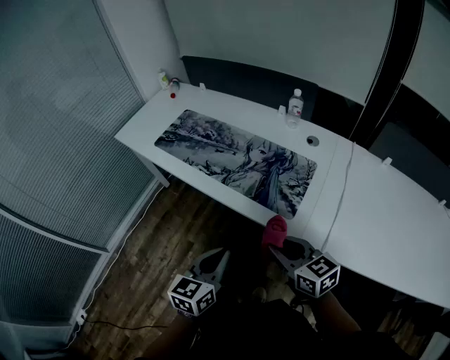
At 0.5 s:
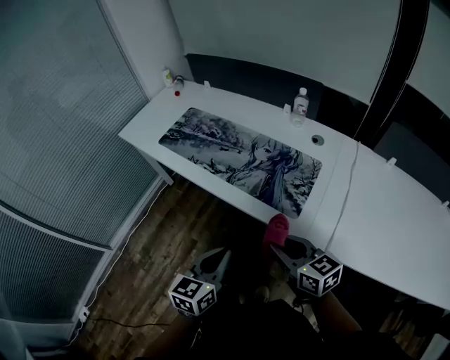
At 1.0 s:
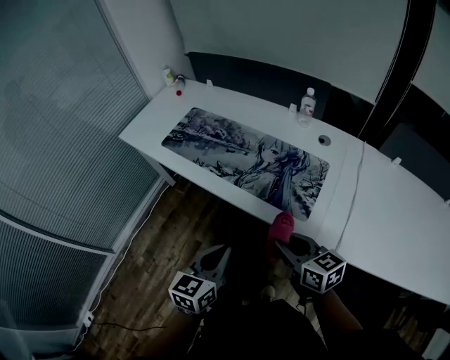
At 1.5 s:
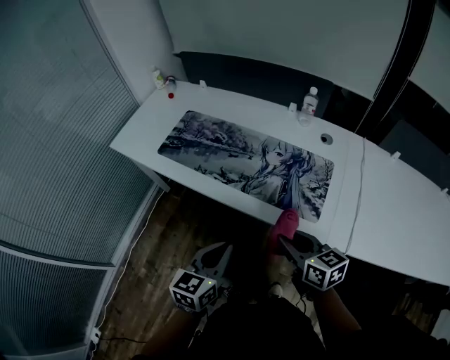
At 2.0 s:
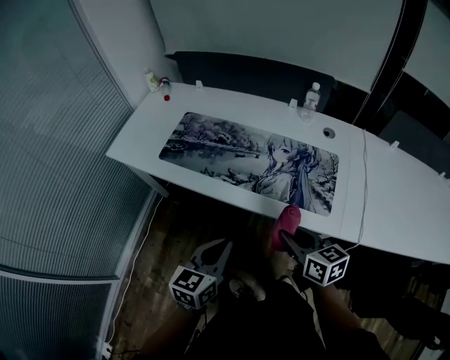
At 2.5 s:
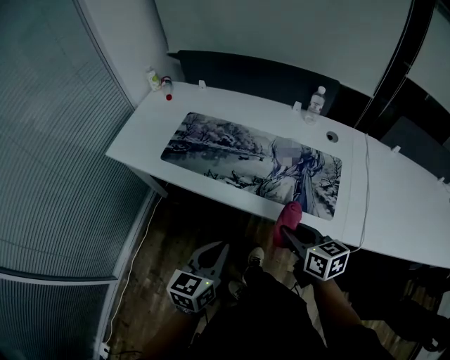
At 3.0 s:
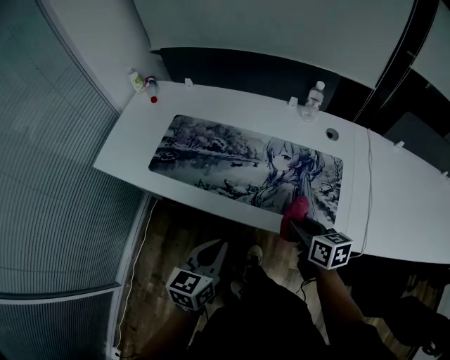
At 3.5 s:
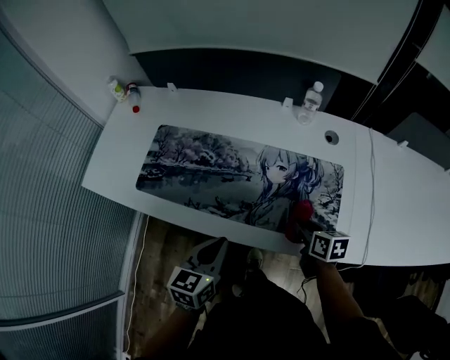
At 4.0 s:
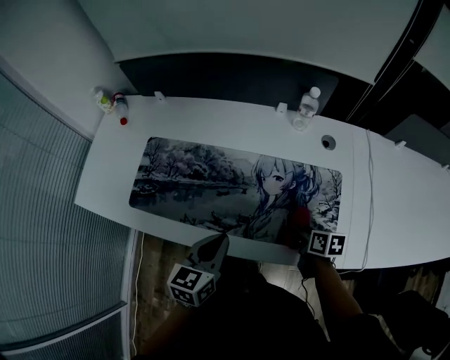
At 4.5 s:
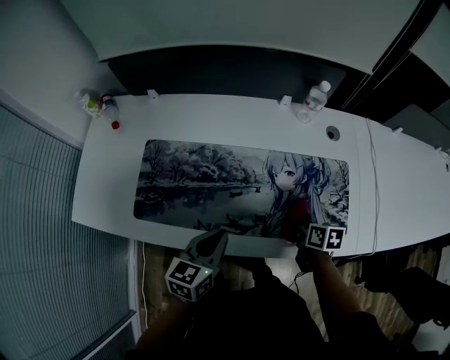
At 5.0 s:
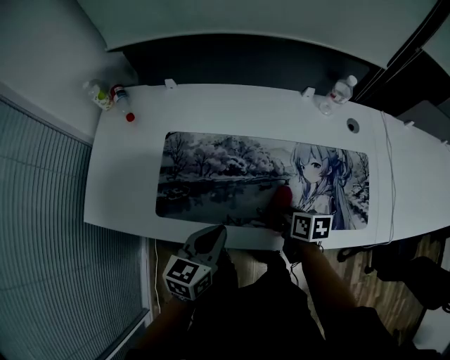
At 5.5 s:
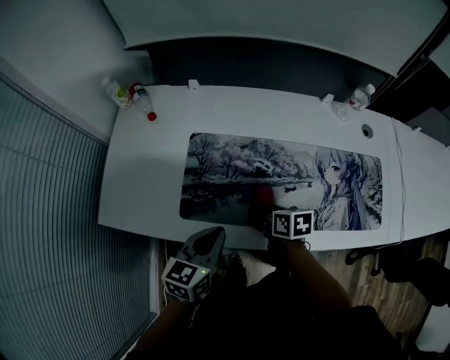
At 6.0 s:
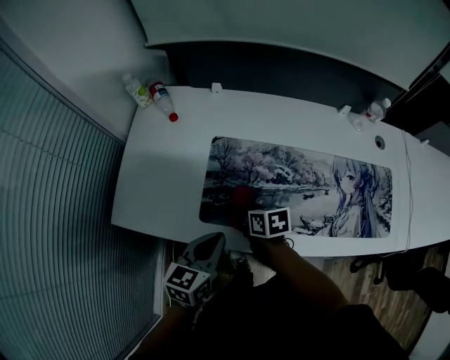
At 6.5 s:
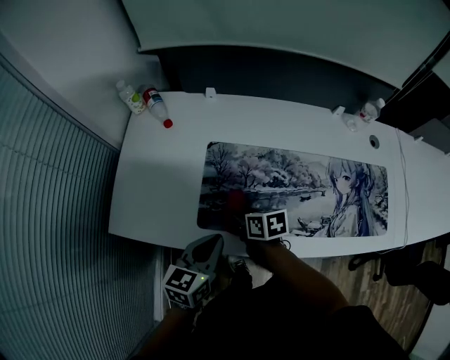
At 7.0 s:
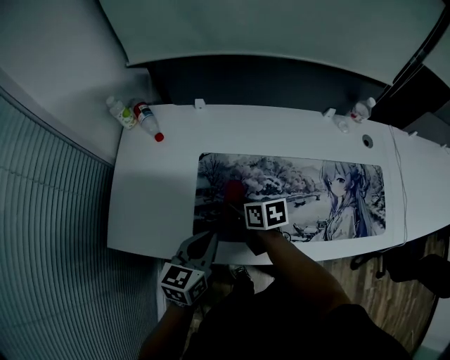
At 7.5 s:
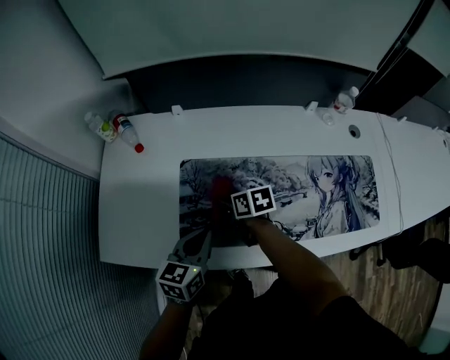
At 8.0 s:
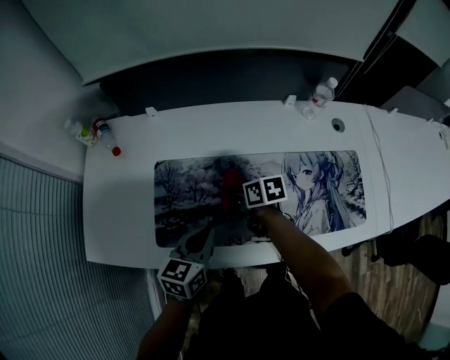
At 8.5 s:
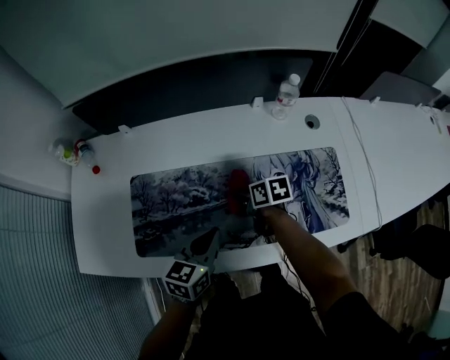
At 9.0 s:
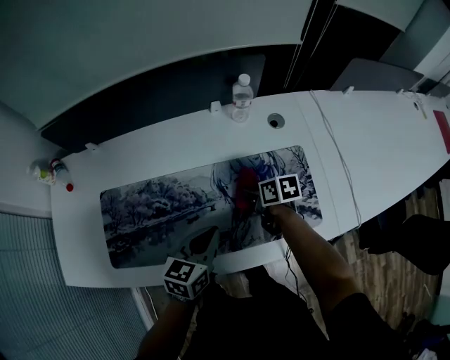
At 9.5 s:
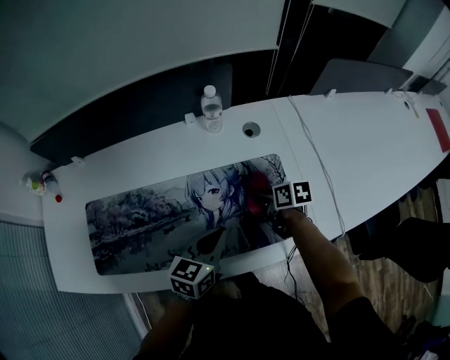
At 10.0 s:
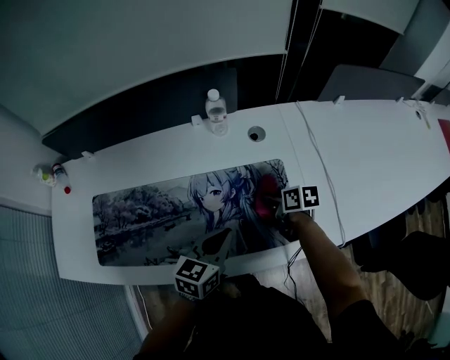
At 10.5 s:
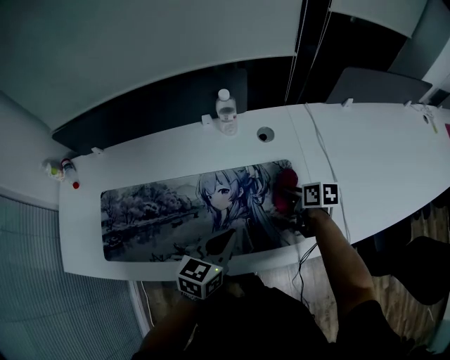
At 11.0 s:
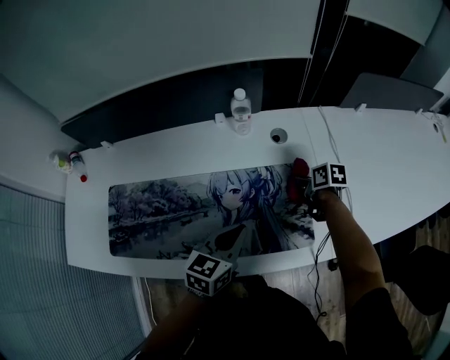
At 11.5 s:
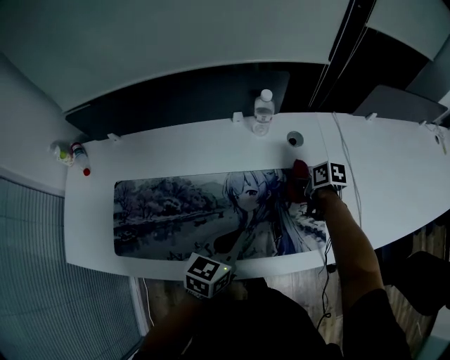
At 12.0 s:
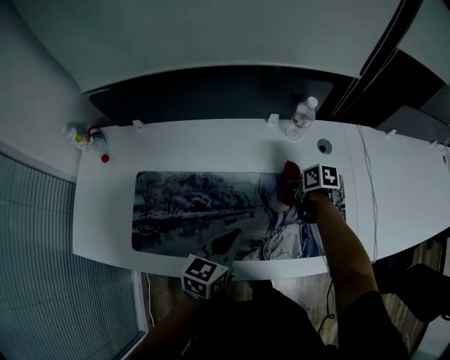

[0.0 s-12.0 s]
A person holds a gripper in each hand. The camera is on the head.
0.0 to 2.0 s: The grippers both shift to the left and forward by approximately 20 cm. The right gripper swivels approximately 20 degrees.
2.0 to 4.0 s: The right gripper heads forward, downward and to the right, covering approximately 30 cm, and turns by about 40 degrees; the left gripper heads forward, covering roughly 25 cm.
4.0 to 6.0 s: The right gripper goes about 50 cm to the left; the left gripper heads to the left, covering about 30 cm.
6.0 to 8.0 s: Both grippers move to the right and forward, about 15 cm.
8.0 to 10.0 s: The grippers both shift to the right by some 40 cm.
10.0 to 12.0 s: The right gripper is displaced to the left and forward by roughly 15 cm; the left gripper is displaced to the left by about 20 cm.

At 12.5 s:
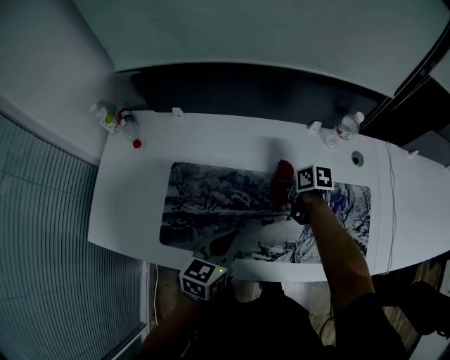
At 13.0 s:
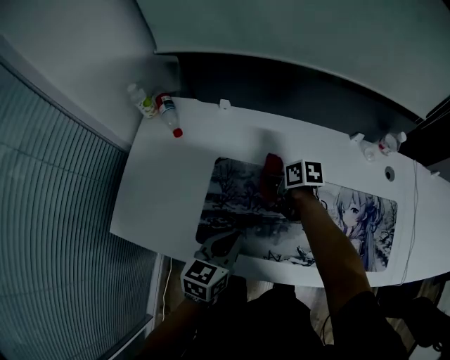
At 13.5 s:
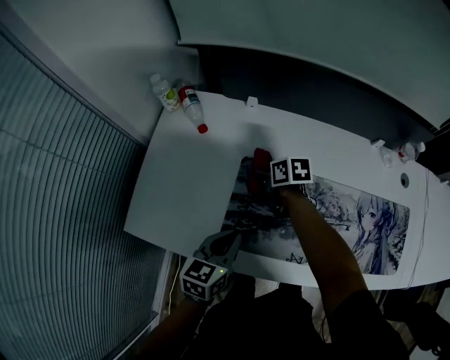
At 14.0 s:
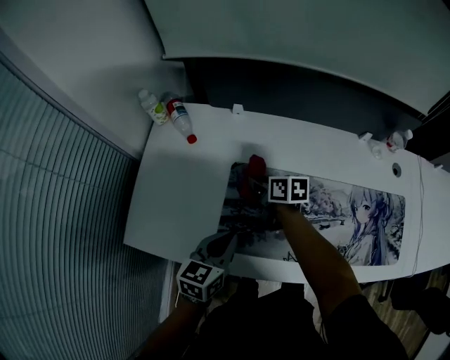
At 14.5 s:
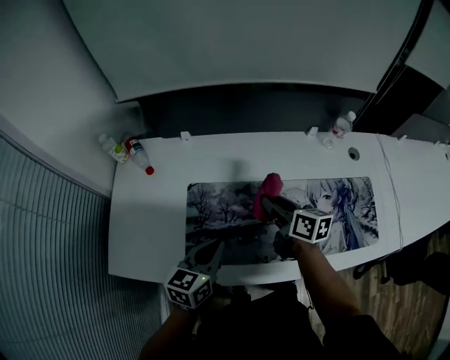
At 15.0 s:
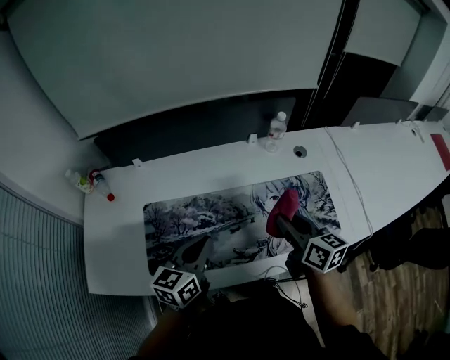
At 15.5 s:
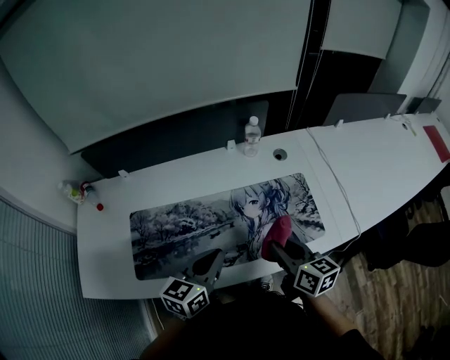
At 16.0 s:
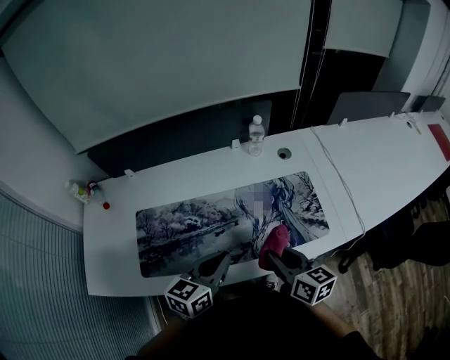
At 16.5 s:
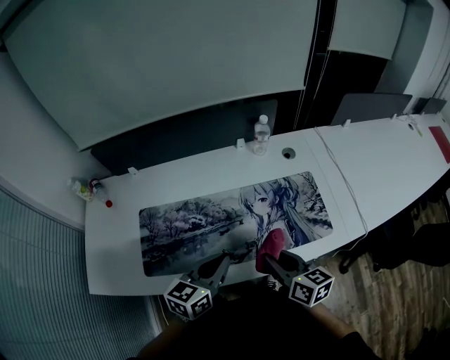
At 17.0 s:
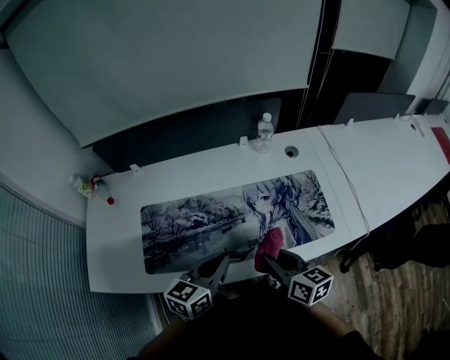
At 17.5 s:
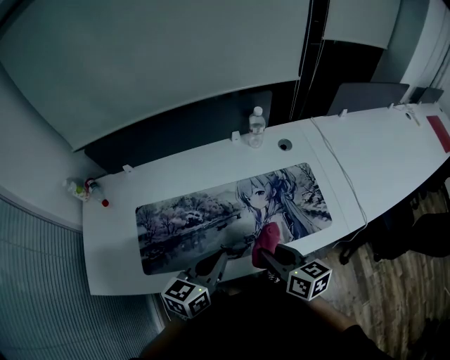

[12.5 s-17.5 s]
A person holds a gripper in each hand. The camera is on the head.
12.5 to 15.0 s: The right gripper goes some 20 cm upward, and tilts its fingers approximately 40 degrees upward, while the left gripper moves upward, approximately 10 cm.
15.0 to 17.5 s: The right gripper shifts approximately 10 cm backward, while the left gripper goes approximately 10 cm to the right and backward.

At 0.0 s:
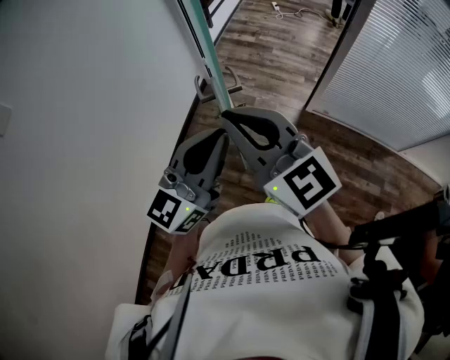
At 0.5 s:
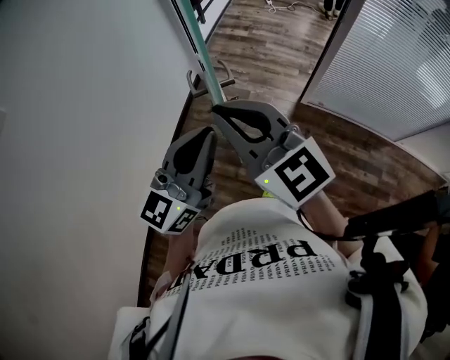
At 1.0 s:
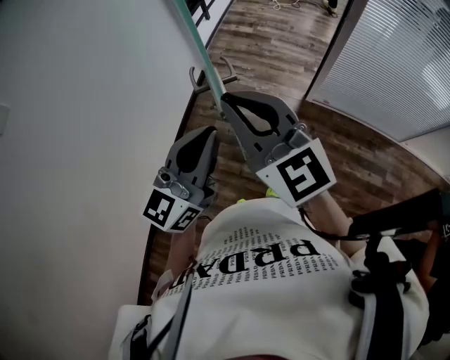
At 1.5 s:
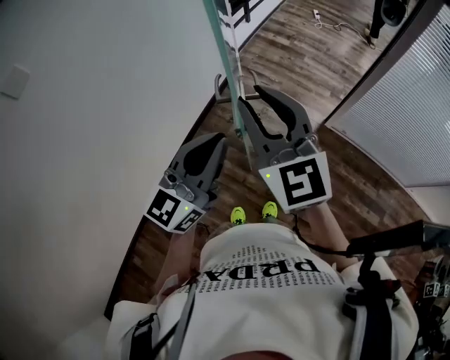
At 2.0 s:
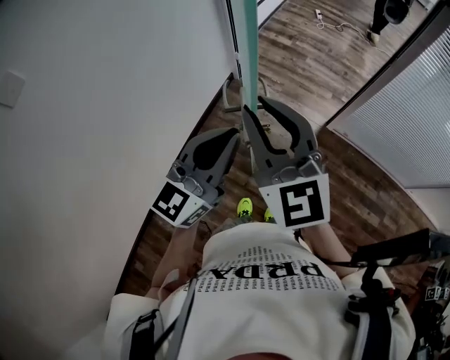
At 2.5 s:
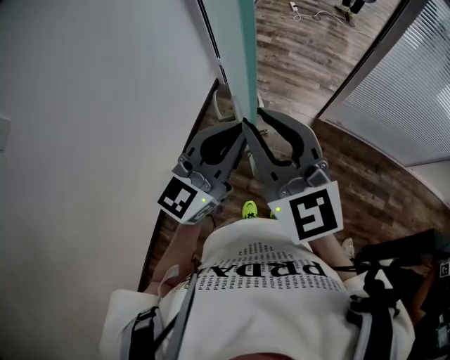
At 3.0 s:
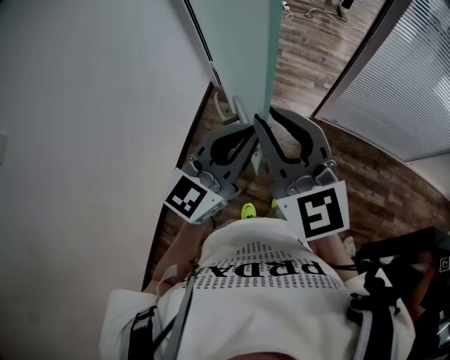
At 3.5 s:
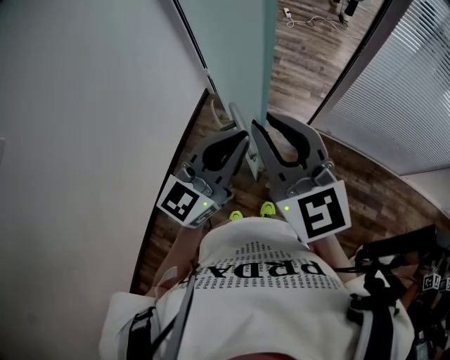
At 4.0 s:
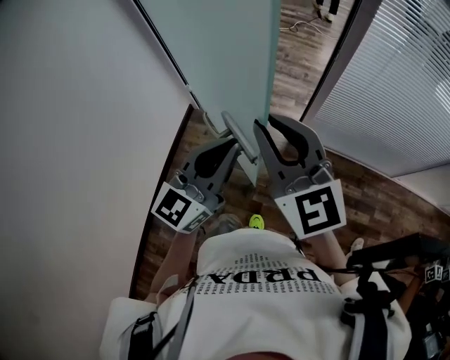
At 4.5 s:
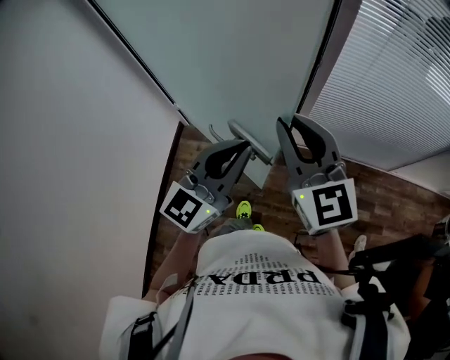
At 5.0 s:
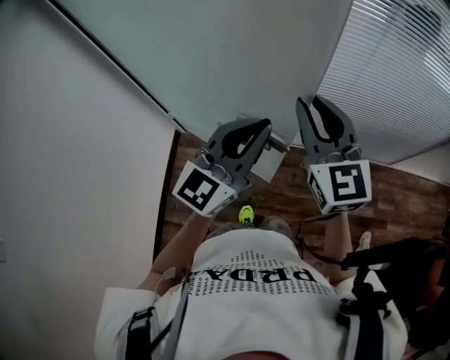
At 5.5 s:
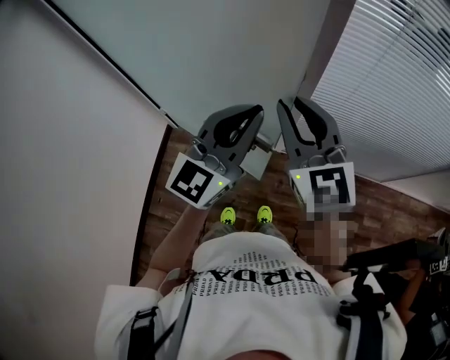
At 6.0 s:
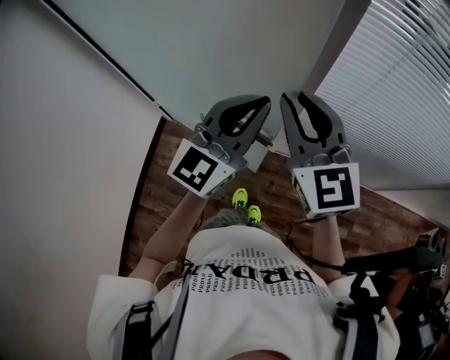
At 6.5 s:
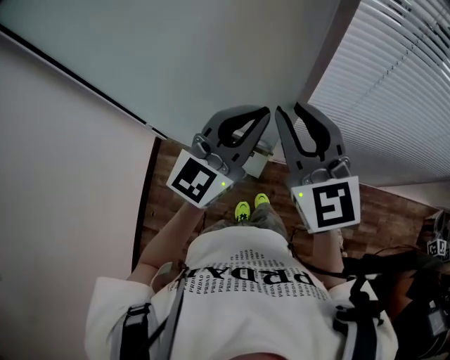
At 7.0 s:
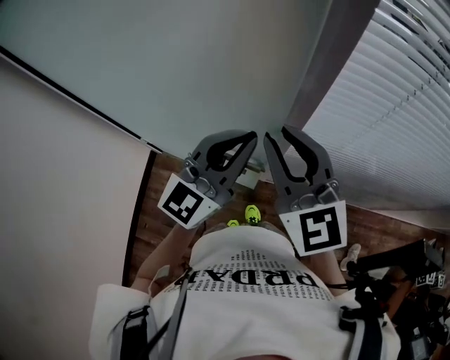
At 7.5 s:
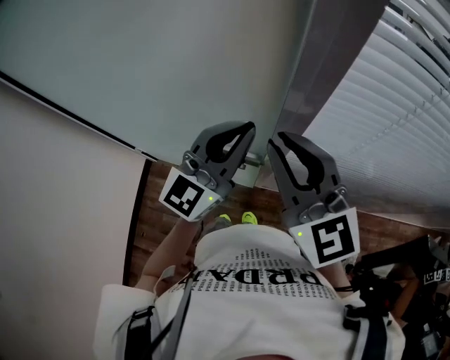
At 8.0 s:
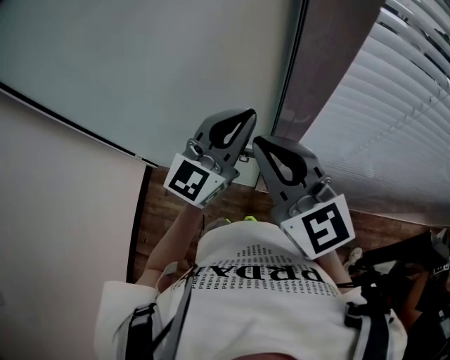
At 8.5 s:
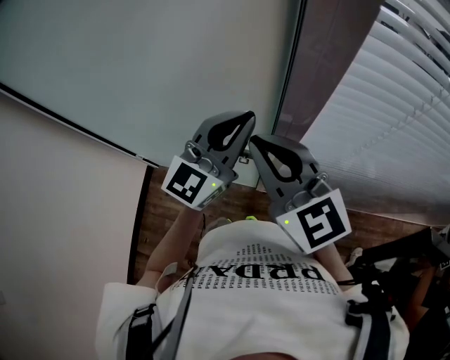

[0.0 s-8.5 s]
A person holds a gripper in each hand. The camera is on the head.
0.0 to 2.0 s: There are only small adjustments of the grippers.
2.0 to 4.0 s: The left gripper shifts about 25 cm forward and to the right. The right gripper goes some 25 cm to the right and forward.
4.0 to 6.5 s: The left gripper moves upward, approximately 5 cm. The right gripper shifts by roughly 5 cm.
6.5 to 8.5 s: The left gripper moves roughly 5 cm, while the right gripper shifts some 5 cm downward, and rotates roughly 20 degrees.

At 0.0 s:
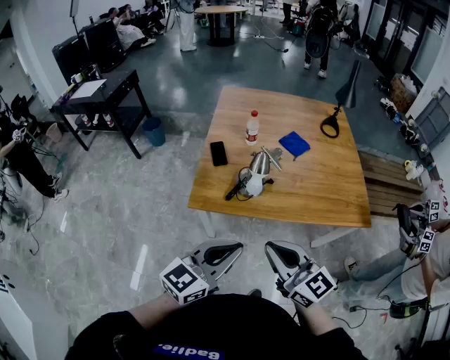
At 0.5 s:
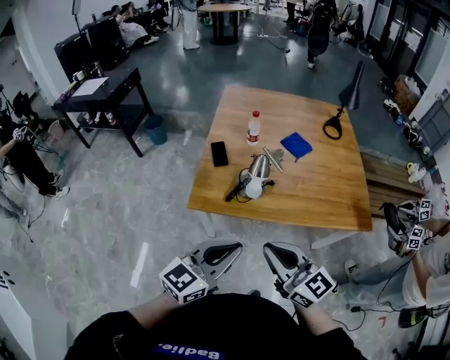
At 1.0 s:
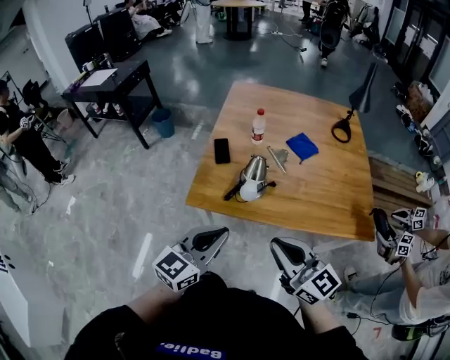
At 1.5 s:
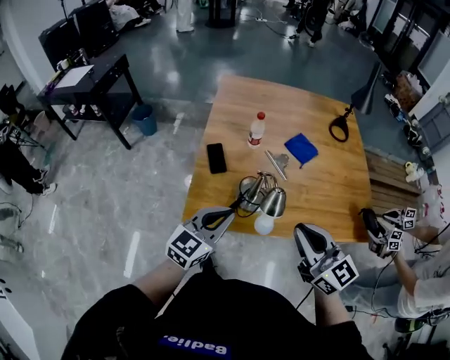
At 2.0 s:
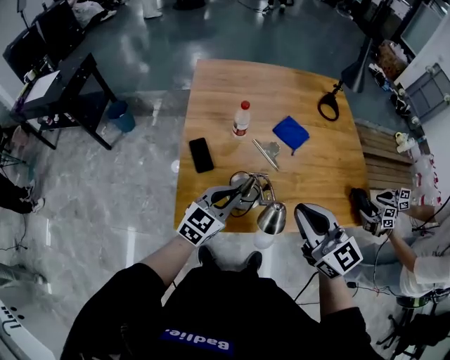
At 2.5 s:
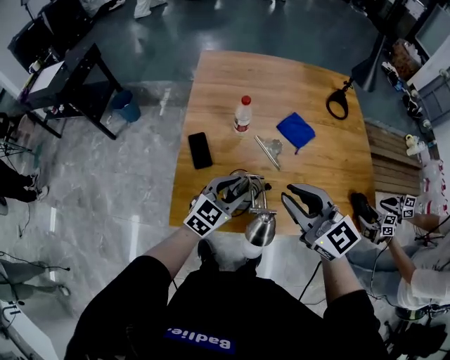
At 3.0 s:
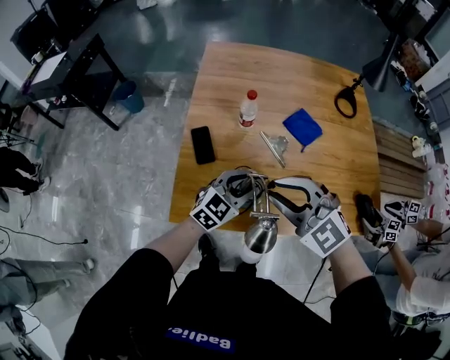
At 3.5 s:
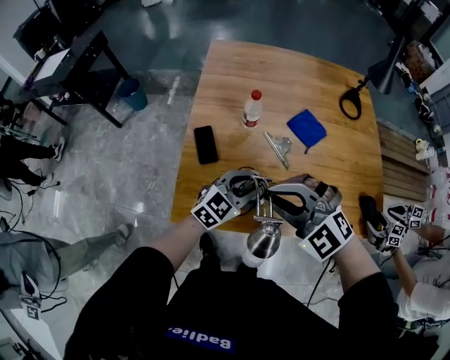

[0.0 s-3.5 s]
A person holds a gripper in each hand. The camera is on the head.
0.0 to 2.0 s: The right gripper heads forward, covering some 25 cm. The left gripper moves forward and downward, roughly 35 cm.
2.0 to 3.5 s: The left gripper shifts about 10 cm downward and to the right, and opens its fingers, while the right gripper moves to the left, downward and forward, some 10 cm, and rotates around the line of its fingers by some 50 degrees, counterclockwise from behind.
